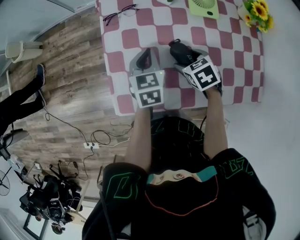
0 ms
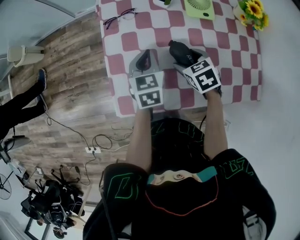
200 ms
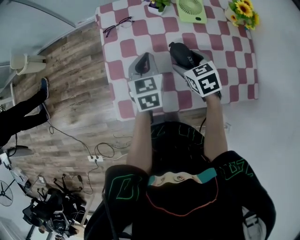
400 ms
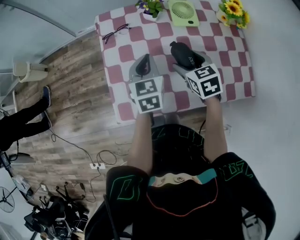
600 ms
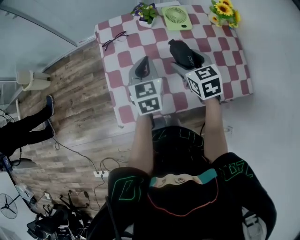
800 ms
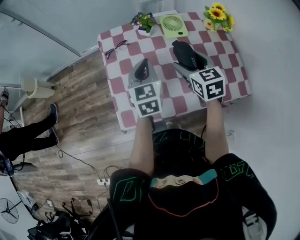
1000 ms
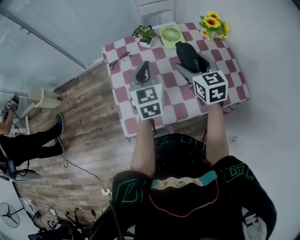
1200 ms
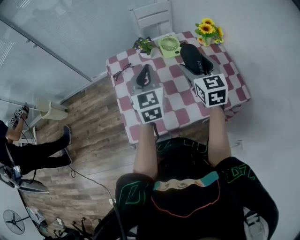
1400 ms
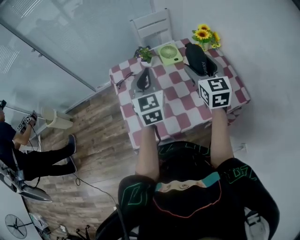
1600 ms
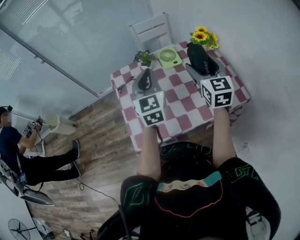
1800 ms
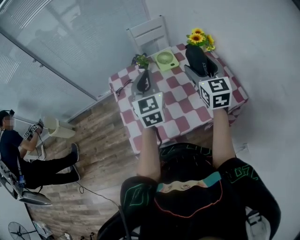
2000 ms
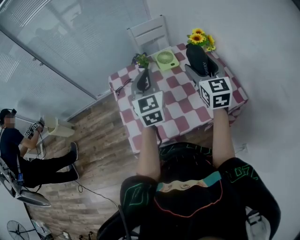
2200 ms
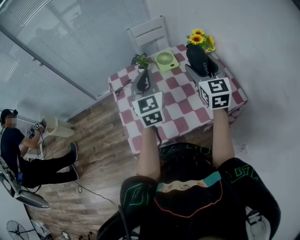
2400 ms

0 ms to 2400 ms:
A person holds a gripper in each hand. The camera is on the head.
0 ms to 1200 ms: The grippers both shift upward by about 20 cm. The left gripper rotates roughly 30 degrees, while the right gripper tips its fingers upward by roughly 40 degrees.
1200 ms to 2400 ms: The right gripper travels upward and to the right by about 15 cm, and rotates some 20 degrees, while the left gripper goes about 10 cm upward.

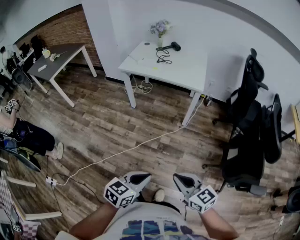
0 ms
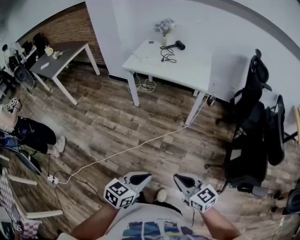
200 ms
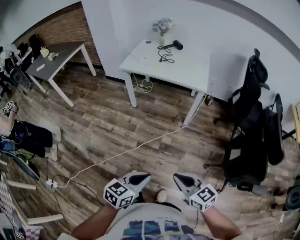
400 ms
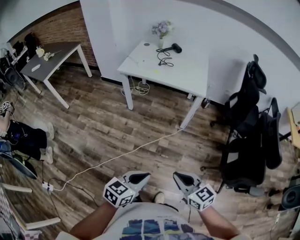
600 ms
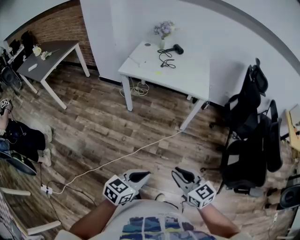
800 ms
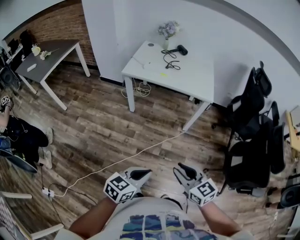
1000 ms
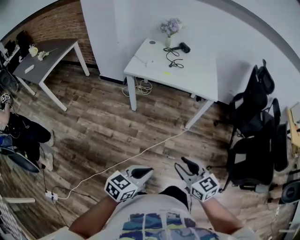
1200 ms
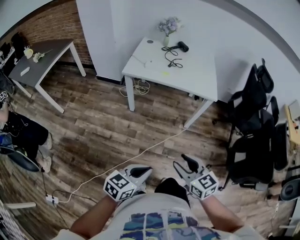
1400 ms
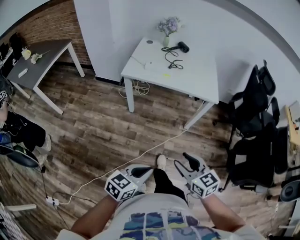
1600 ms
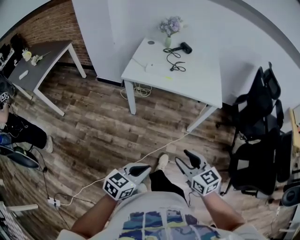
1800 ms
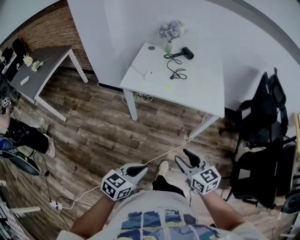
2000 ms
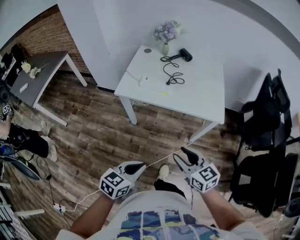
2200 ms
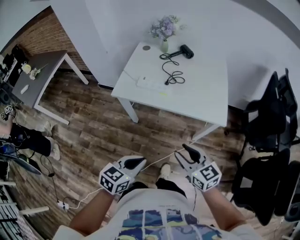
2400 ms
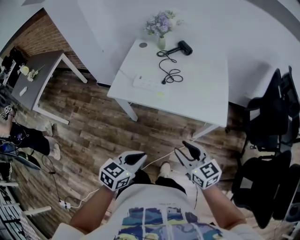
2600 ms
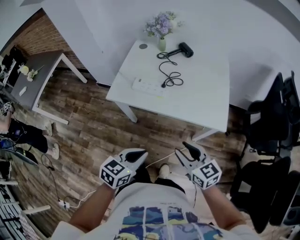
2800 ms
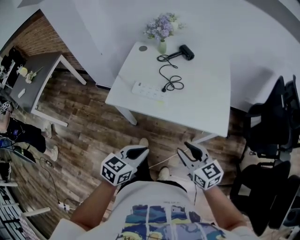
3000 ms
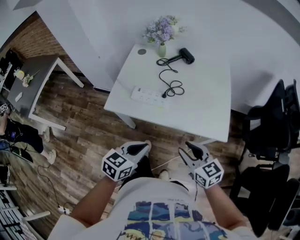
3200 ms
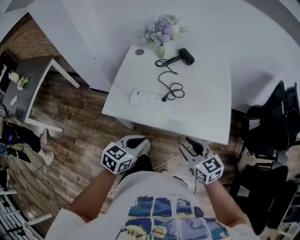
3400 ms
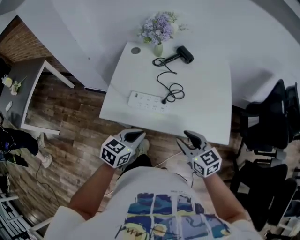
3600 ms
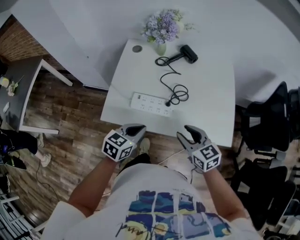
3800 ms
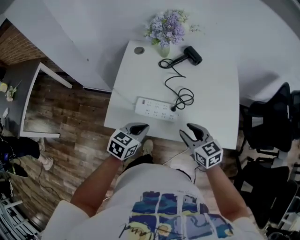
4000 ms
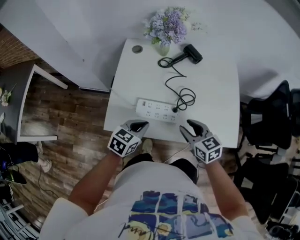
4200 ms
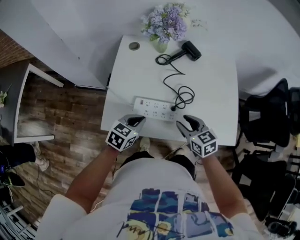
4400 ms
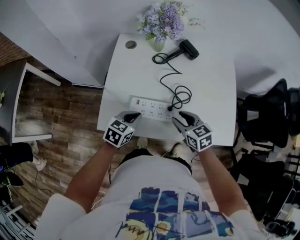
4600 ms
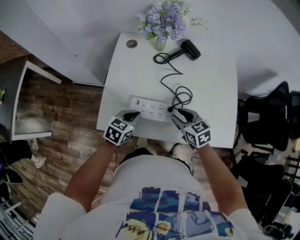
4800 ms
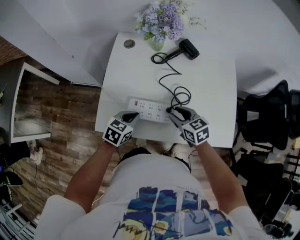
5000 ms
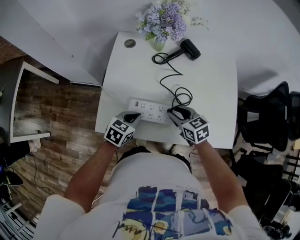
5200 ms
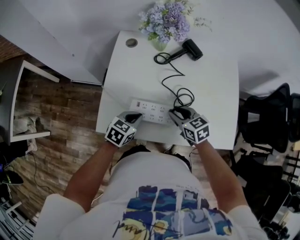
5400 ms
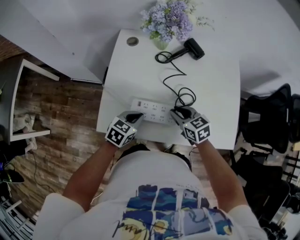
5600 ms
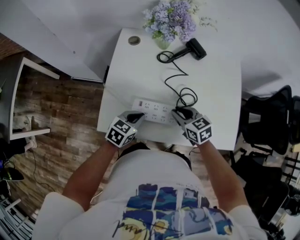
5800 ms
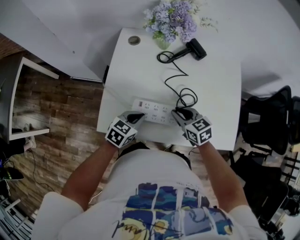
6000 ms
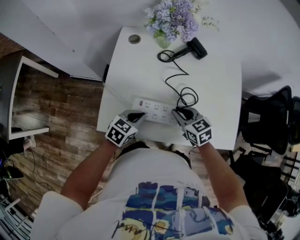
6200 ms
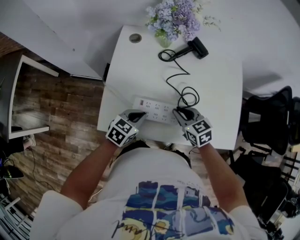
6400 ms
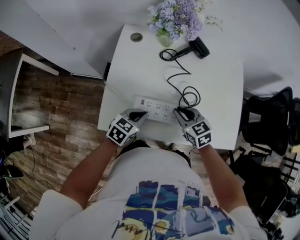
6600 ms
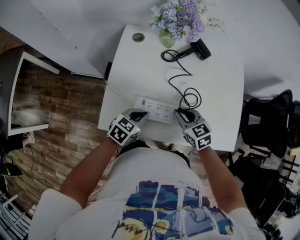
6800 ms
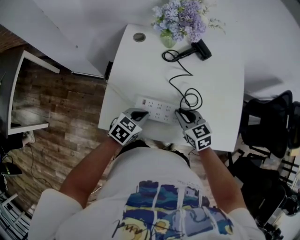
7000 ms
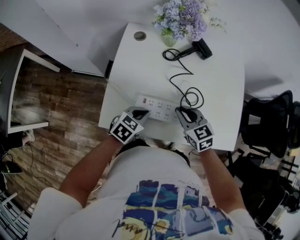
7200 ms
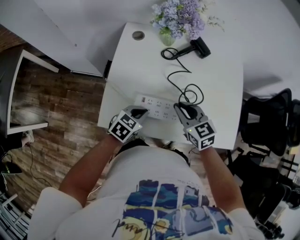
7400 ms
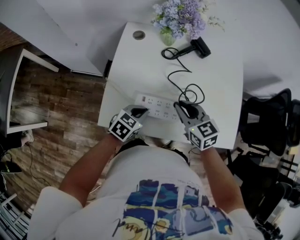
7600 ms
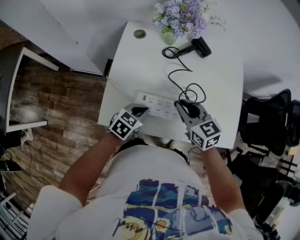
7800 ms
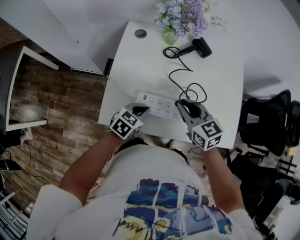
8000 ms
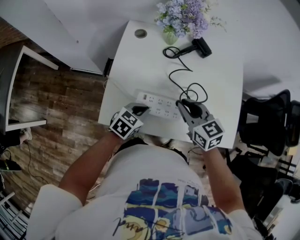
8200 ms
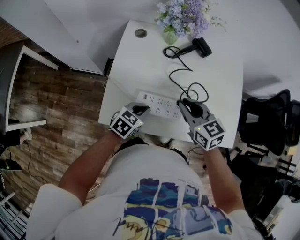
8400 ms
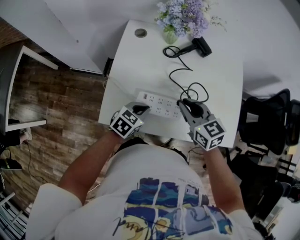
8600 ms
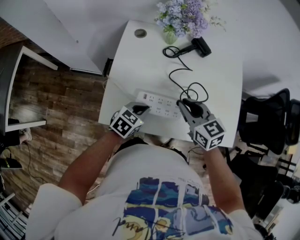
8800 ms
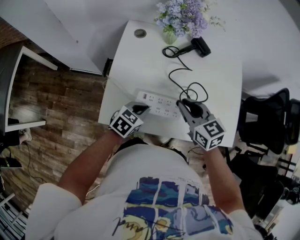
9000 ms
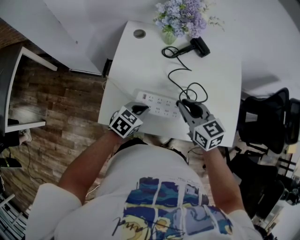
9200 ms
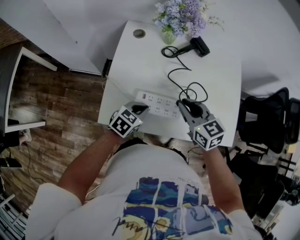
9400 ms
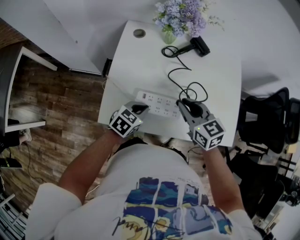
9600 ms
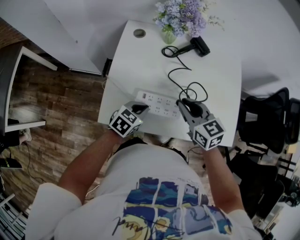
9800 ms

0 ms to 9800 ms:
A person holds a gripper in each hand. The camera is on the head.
0 ms to 1400 ms: The grippers both shift to the left and forward by approximately 30 cm. The right gripper opens up.
1400 ms to 2800 ms: Both grippers are carried forward, about 40 cm.
2800 ms to 4200 ms: The right gripper goes roughly 30 cm forward; the left gripper heads forward and to the left, covering some 35 cm.
4200 ms to 5600 ms: The left gripper is displaced downward and forward by some 10 cm. Meanwhile the right gripper moves forward and downward, approximately 10 cm.
5600 ms to 7000 ms: The grippers make only small movements.
7000 ms to 8400 ms: The right gripper is displaced upward by approximately 10 cm.
8400 ms to 9800 ms: Both grippers stay put.

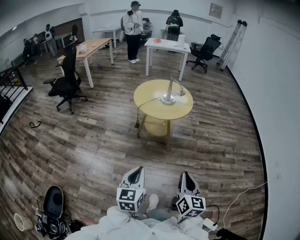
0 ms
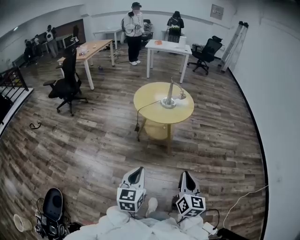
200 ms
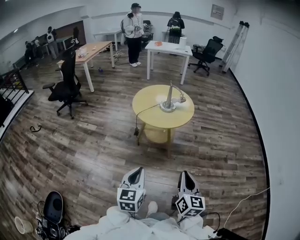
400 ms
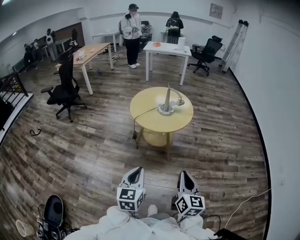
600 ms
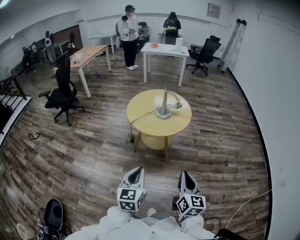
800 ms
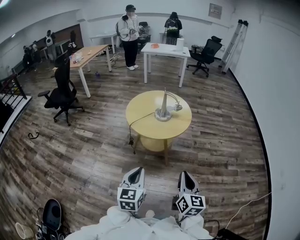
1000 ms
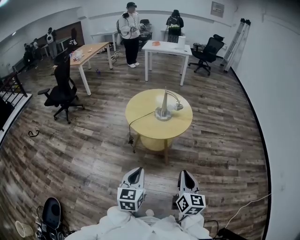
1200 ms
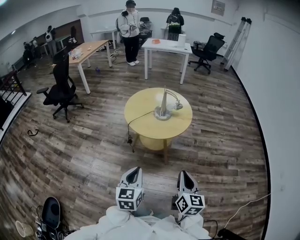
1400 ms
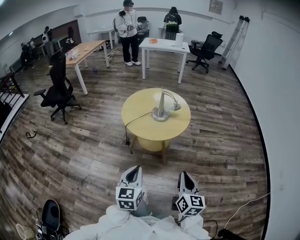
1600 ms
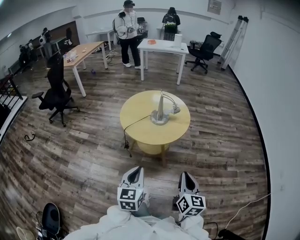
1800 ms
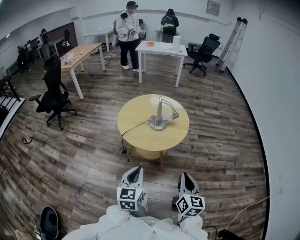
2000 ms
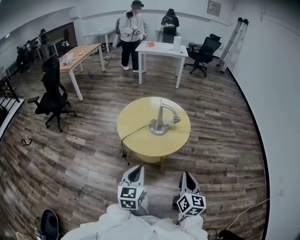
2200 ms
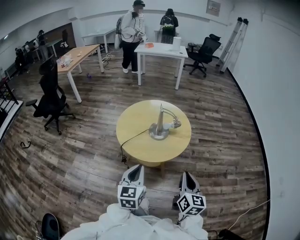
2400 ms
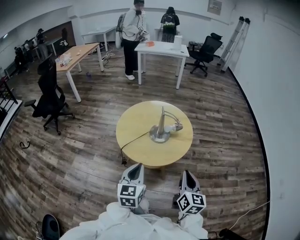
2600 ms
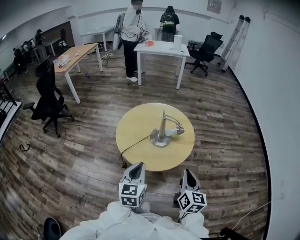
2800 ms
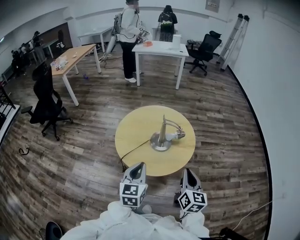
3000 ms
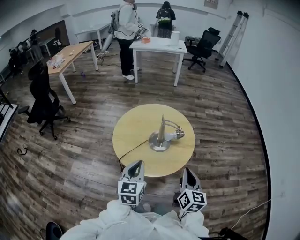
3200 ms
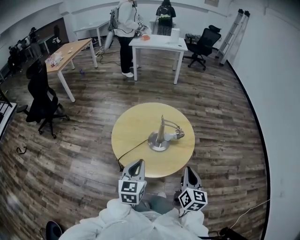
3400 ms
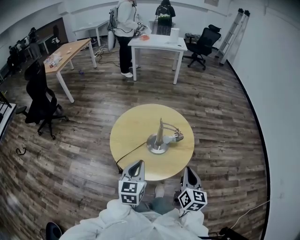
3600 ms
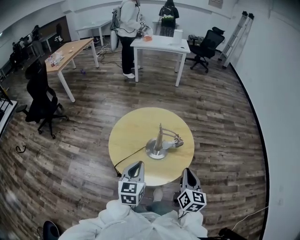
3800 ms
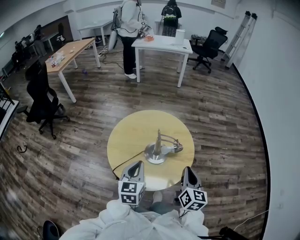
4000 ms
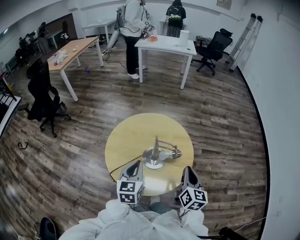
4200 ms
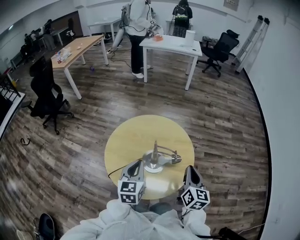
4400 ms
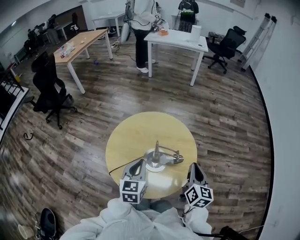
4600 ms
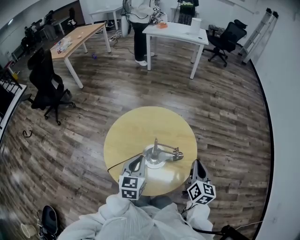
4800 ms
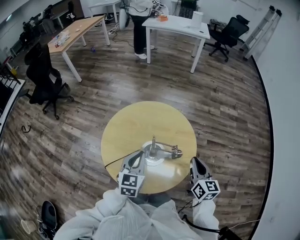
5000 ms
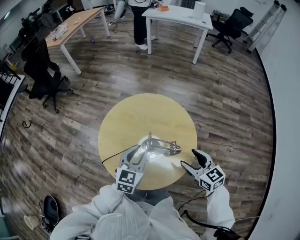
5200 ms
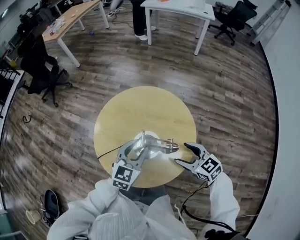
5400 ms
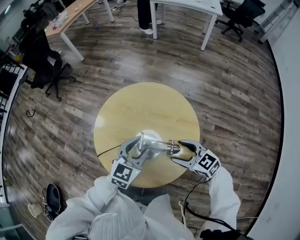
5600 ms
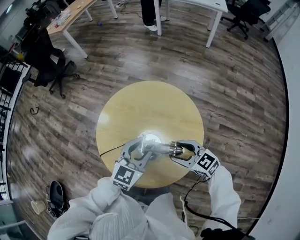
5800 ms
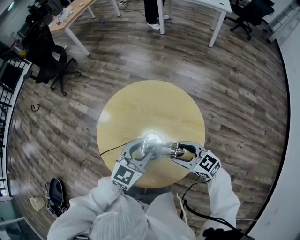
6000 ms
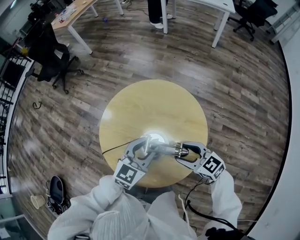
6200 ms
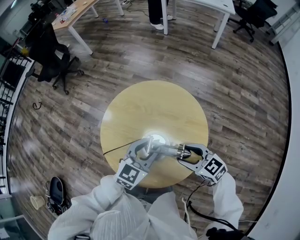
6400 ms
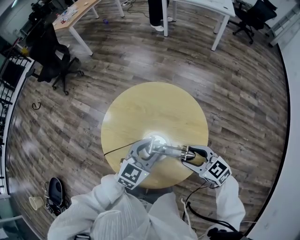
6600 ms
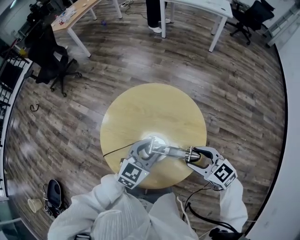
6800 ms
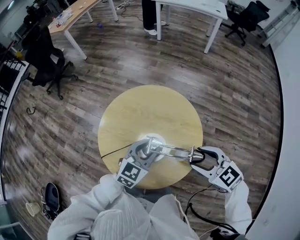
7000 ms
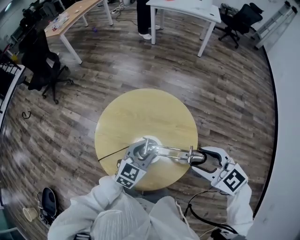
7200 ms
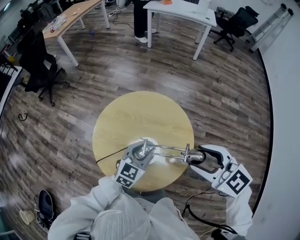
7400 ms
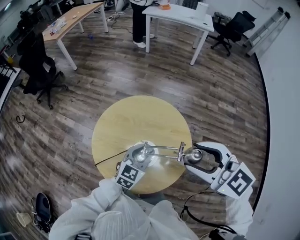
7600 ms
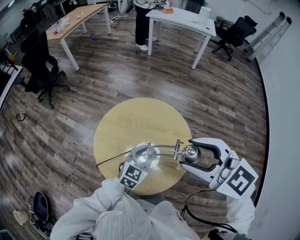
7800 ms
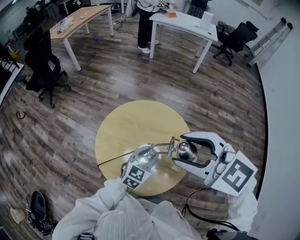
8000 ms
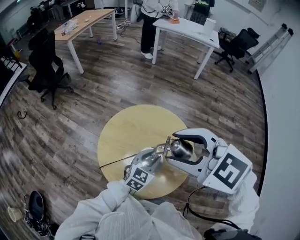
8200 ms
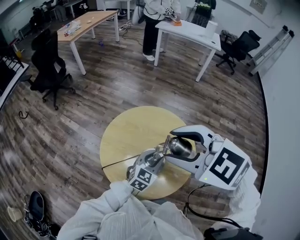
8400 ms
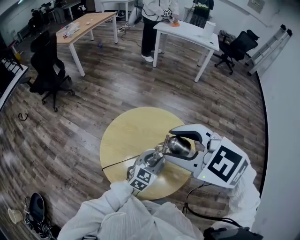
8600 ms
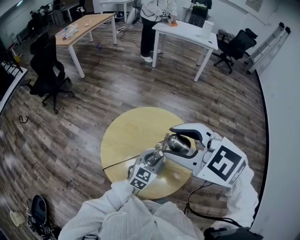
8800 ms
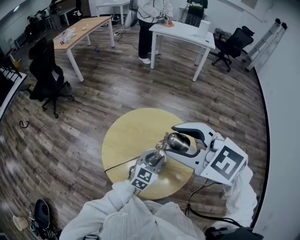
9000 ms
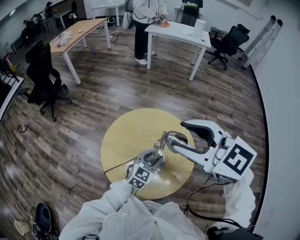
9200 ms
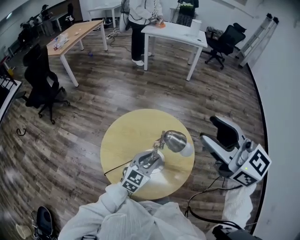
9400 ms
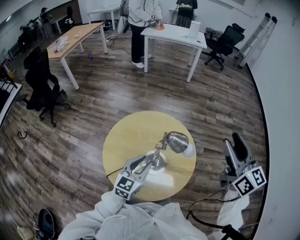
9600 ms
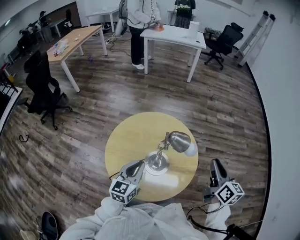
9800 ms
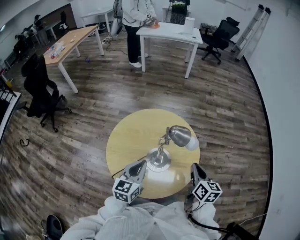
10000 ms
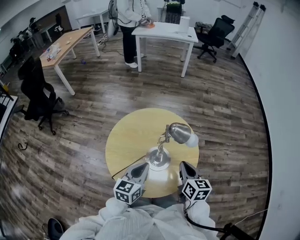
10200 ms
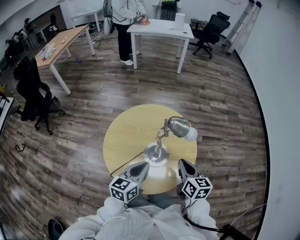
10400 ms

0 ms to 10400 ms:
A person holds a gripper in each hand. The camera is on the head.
0 ms to 1400 ms: Both grippers travel together forward, approximately 25 cm.
1400 ms to 3000 ms: The grippers both shift forward by roughly 30 cm.
3000 ms to 4400 ms: The grippers both shift forward by roughly 20 cm.
4400 ms to 6000 ms: The left gripper changes place by roughly 15 cm, and opens its fingers; the right gripper shifts approximately 15 cm downward, turns by some 80 degrees, and opens its fingers.
6000 ms to 7400 ms: The right gripper is displaced upward by about 25 cm, and swivels about 20 degrees.
7400 ms to 9000 ms: The right gripper goes about 20 cm to the left and upward.
9000 ms to 10400 ms: The right gripper is displaced downward by approximately 25 cm, turns by some 80 degrees, and closes, while the left gripper shifts by approximately 10 cm, turns by some 30 degrees, and closes its fingers.

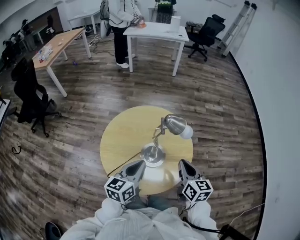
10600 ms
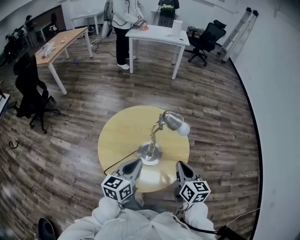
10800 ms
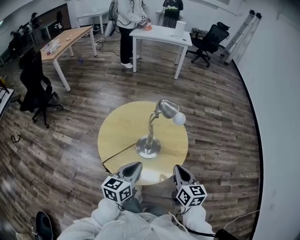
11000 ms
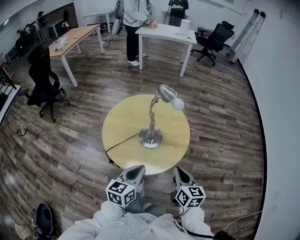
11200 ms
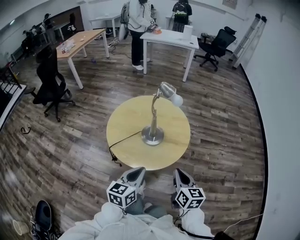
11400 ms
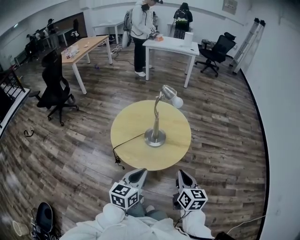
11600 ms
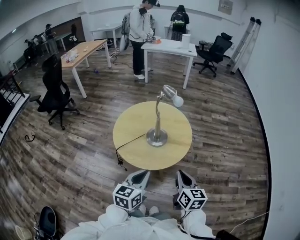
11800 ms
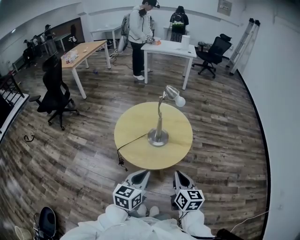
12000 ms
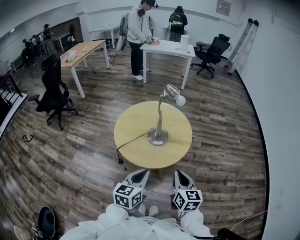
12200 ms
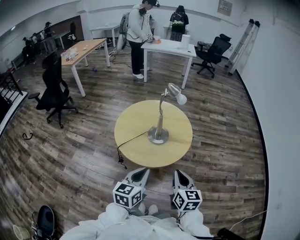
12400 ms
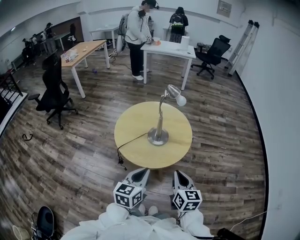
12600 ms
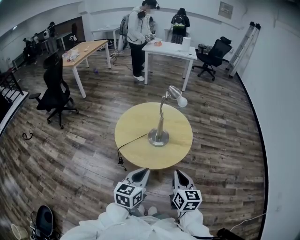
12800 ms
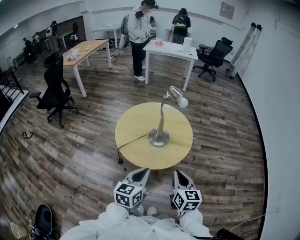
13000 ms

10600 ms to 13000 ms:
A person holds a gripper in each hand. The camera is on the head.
10600 ms to 11800 ms: The two grippers go some 25 cm backward.
11800 ms to 13000 ms: The grippers stay close to where they were, moving slightly.
